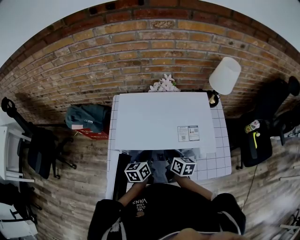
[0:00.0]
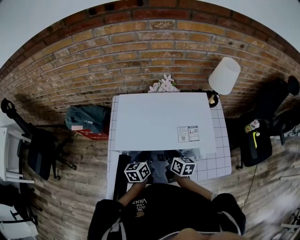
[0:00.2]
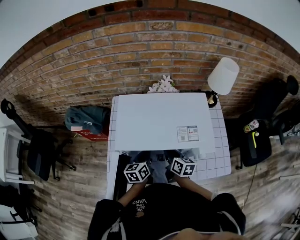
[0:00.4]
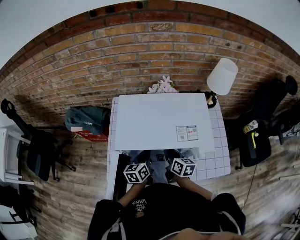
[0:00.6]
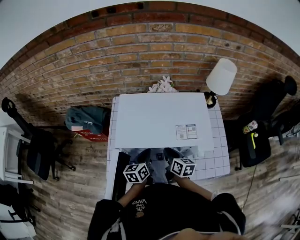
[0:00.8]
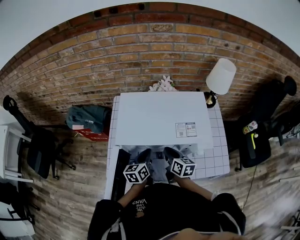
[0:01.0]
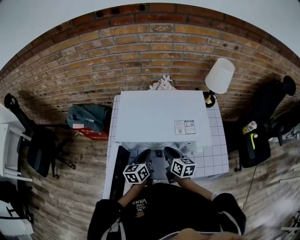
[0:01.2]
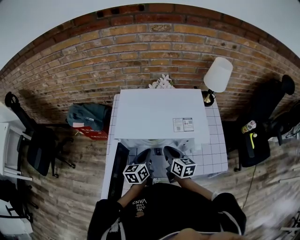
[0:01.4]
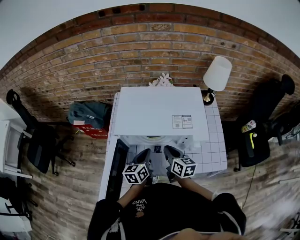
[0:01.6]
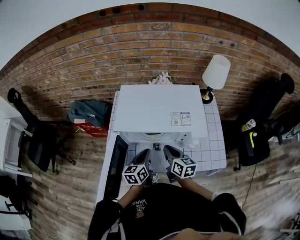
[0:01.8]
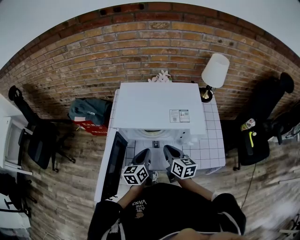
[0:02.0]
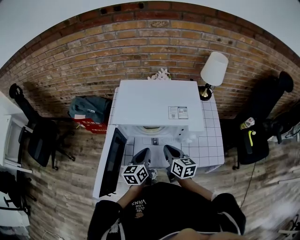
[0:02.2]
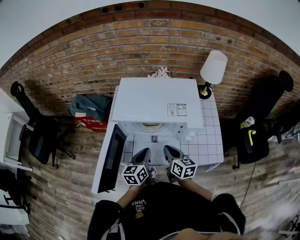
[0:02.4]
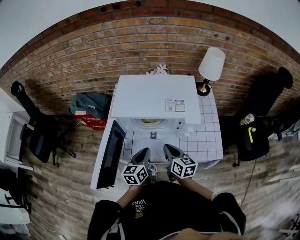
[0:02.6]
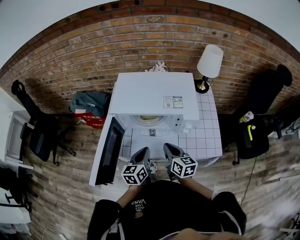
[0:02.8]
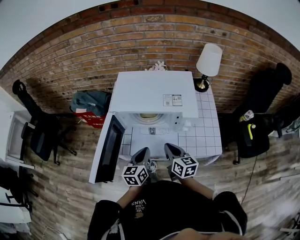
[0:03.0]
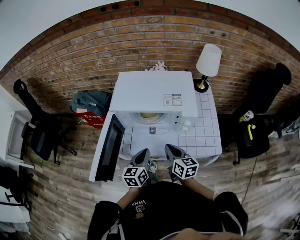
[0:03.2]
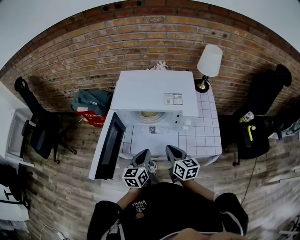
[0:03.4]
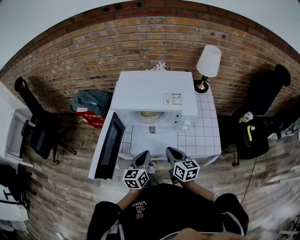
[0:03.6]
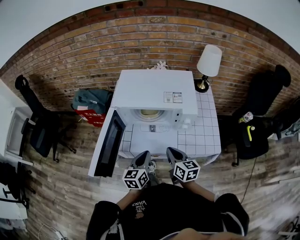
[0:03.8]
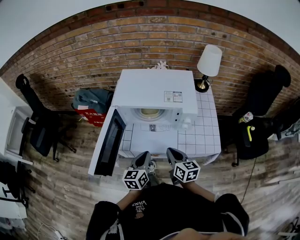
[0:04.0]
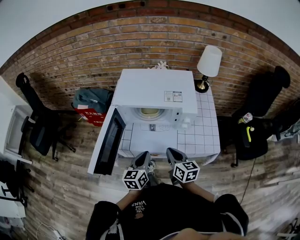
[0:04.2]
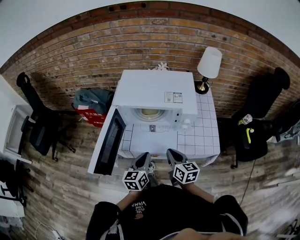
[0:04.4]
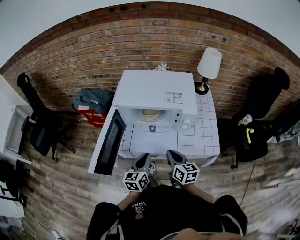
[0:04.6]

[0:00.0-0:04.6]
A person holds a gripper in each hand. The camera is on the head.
0:00.0 to 0:01.6: The grippers both shift backward by approximately 5 cm.
0:01.6 to 0:03.0: Both grippers move backward, some 10 cm.
0:03.0 to 0:04.6: The two grippers go approximately 5 cm backward.

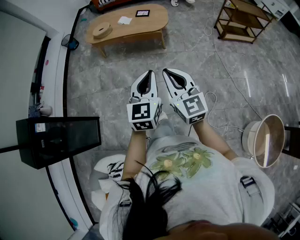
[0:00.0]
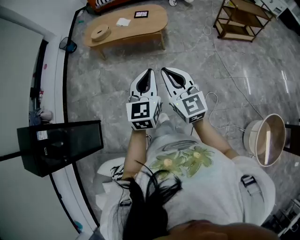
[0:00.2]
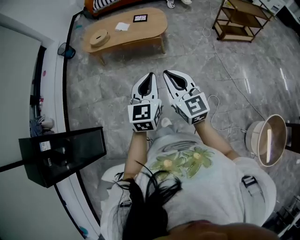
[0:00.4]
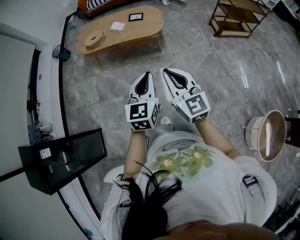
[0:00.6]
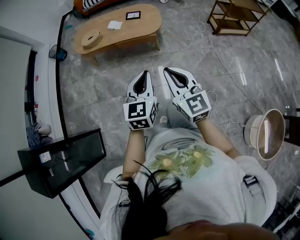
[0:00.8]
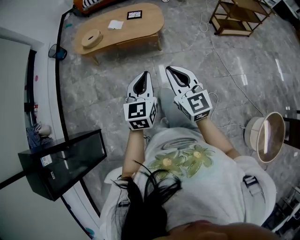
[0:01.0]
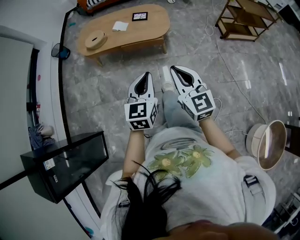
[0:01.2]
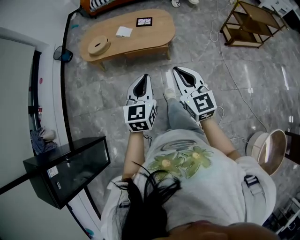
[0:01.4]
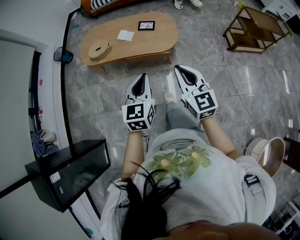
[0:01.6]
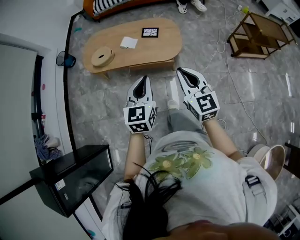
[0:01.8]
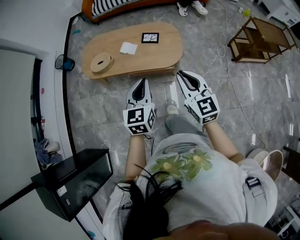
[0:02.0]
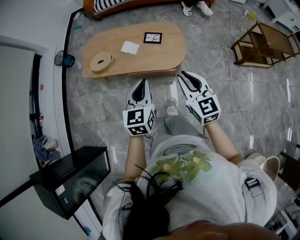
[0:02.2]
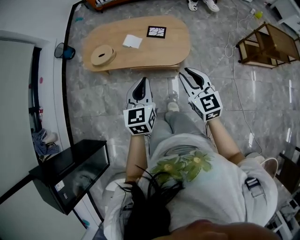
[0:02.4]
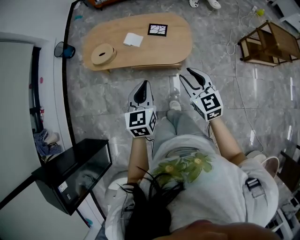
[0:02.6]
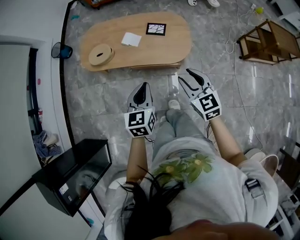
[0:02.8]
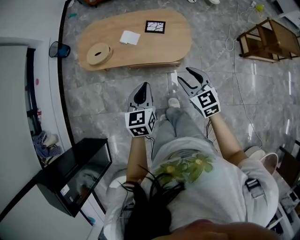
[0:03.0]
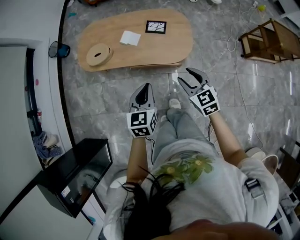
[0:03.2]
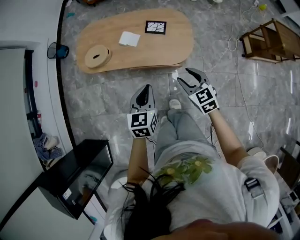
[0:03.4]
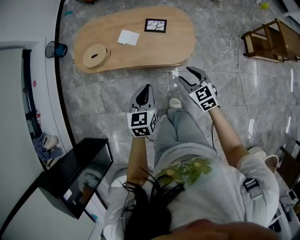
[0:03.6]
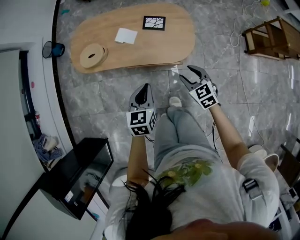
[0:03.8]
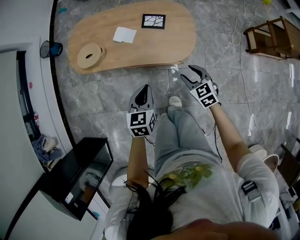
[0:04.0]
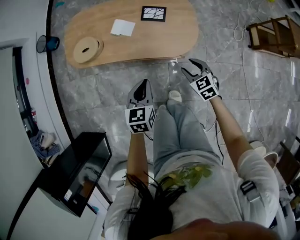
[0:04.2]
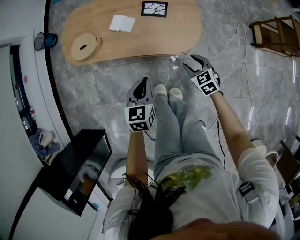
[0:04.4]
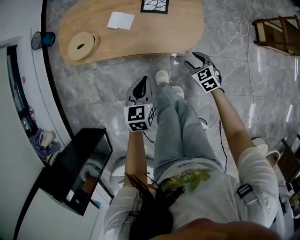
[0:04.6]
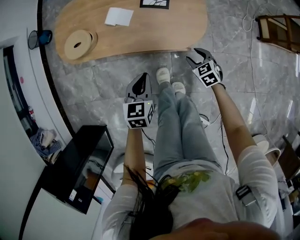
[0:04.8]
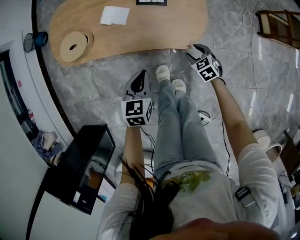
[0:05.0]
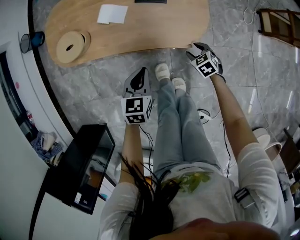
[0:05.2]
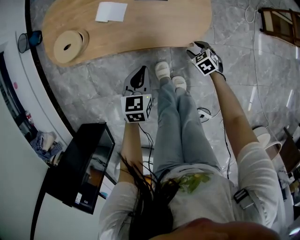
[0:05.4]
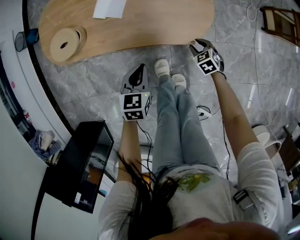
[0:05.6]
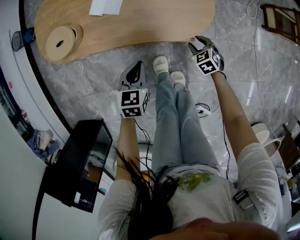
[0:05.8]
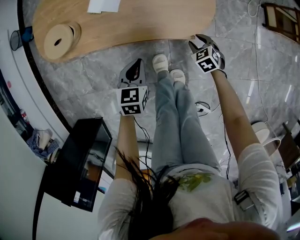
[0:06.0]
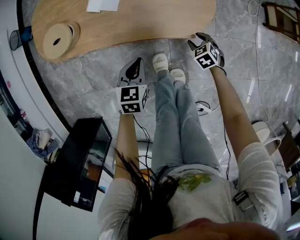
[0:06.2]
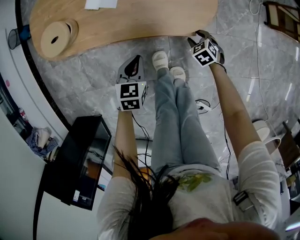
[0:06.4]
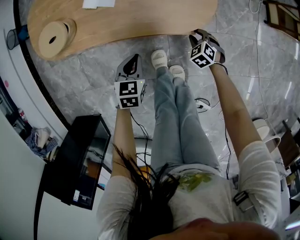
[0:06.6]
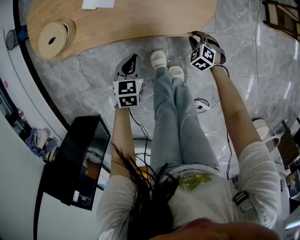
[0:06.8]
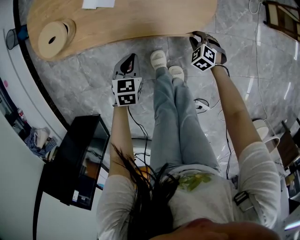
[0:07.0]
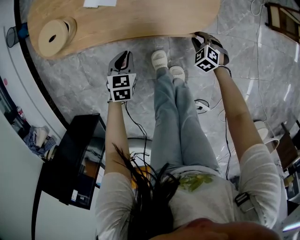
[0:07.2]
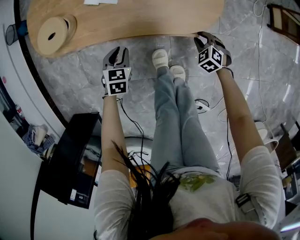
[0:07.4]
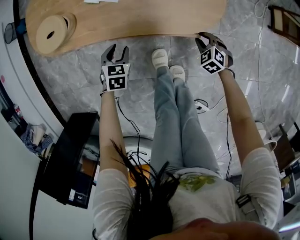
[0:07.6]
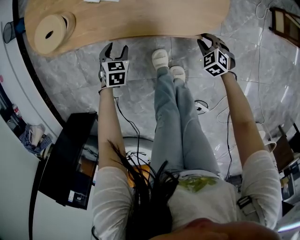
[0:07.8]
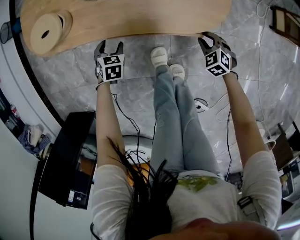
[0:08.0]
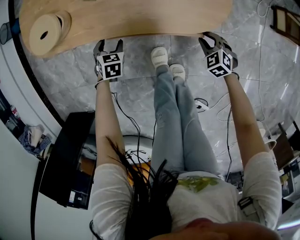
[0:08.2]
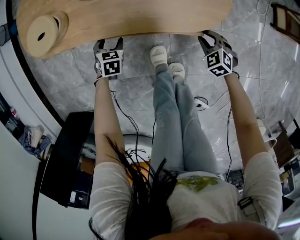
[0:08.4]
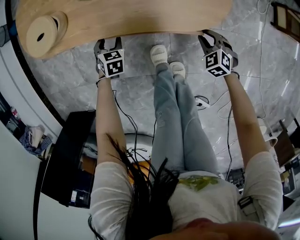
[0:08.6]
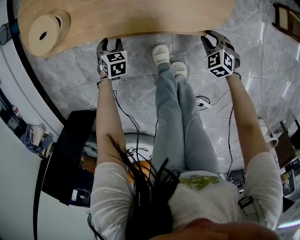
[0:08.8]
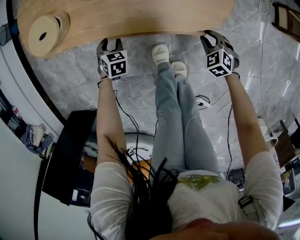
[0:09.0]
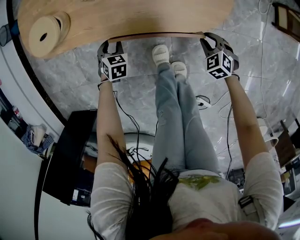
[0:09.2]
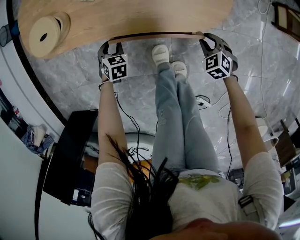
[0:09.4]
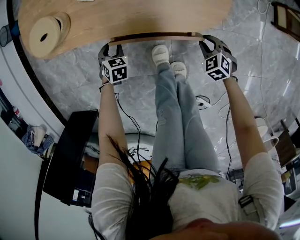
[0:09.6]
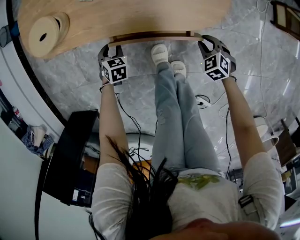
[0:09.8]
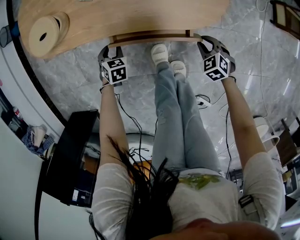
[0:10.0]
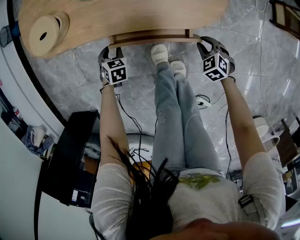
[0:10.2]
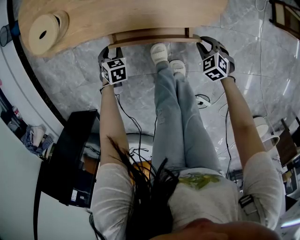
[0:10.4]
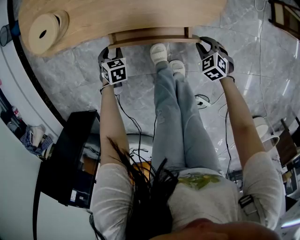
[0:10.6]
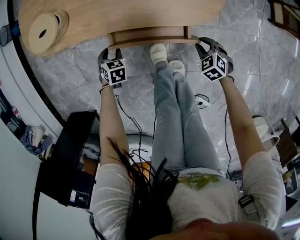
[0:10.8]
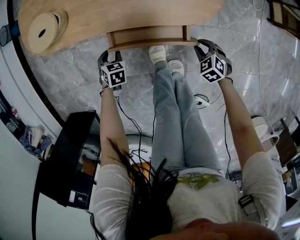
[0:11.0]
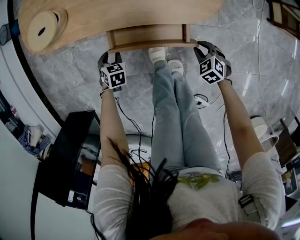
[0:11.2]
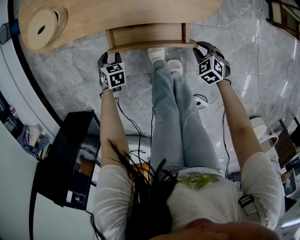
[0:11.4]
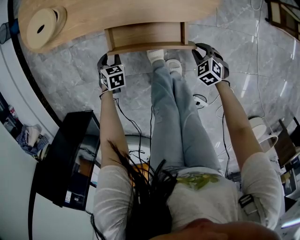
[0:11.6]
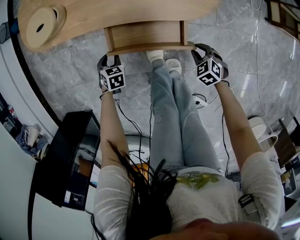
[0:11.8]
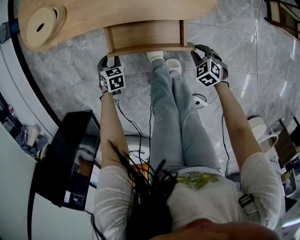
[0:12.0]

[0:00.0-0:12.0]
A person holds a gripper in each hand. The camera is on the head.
0:00.0 to 0:01.6: The grippers both shift forward by some 35 cm.
0:01.6 to 0:03.0: Both grippers move forward and downward, roughly 20 cm. The right gripper rotates roughly 20 degrees, and opens.
0:03.0 to 0:04.4: The right gripper heads downward, covering roughly 25 cm, and rotates some 20 degrees, while the left gripper travels downward by some 15 cm.
0:04.4 to 0:06.0: The grippers both shift downward by about 20 cm.
0:06.0 to 0:07.6: The left gripper goes approximately 15 cm downward and to the left, and opens.
0:07.6 to 0:09.0: The left gripper goes roughly 5 cm downward.
0:09.0 to 0:10.4: The left gripper moves about 5 cm.
0:10.4 to 0:12.0: The two grippers go some 5 cm backward.

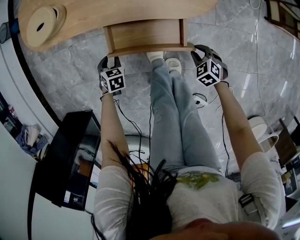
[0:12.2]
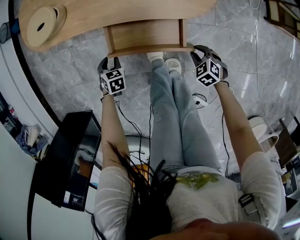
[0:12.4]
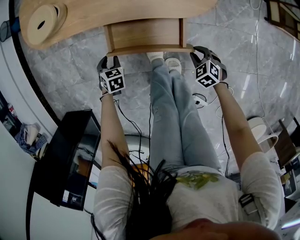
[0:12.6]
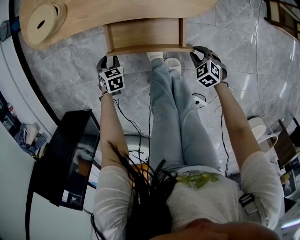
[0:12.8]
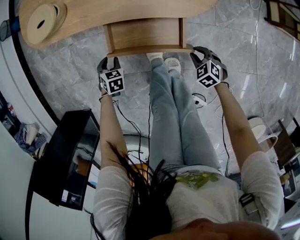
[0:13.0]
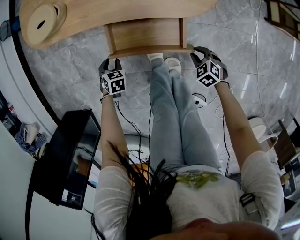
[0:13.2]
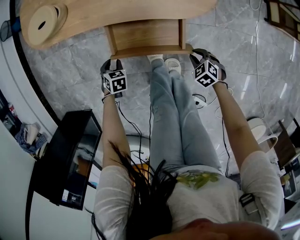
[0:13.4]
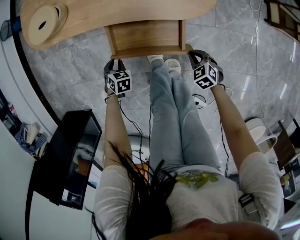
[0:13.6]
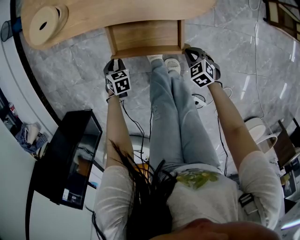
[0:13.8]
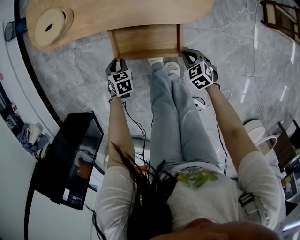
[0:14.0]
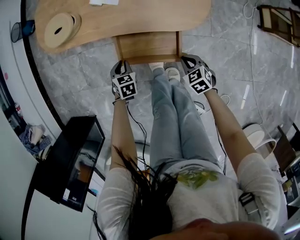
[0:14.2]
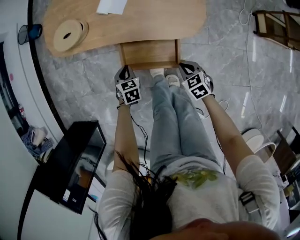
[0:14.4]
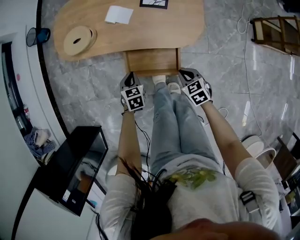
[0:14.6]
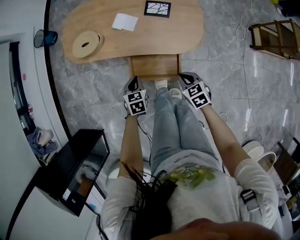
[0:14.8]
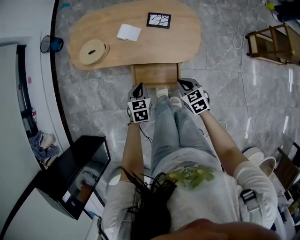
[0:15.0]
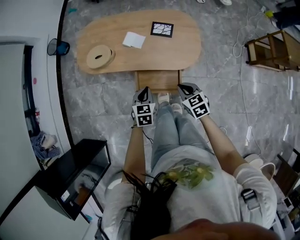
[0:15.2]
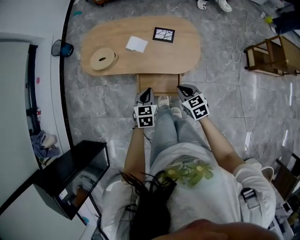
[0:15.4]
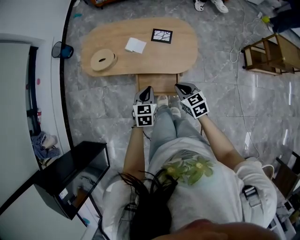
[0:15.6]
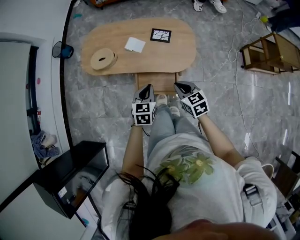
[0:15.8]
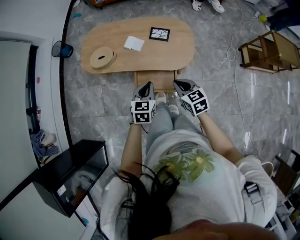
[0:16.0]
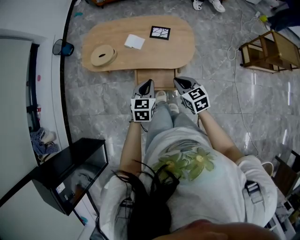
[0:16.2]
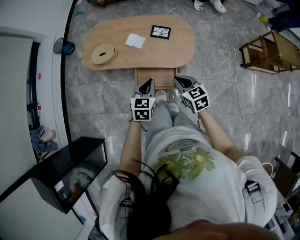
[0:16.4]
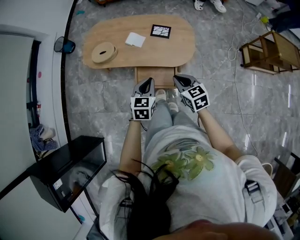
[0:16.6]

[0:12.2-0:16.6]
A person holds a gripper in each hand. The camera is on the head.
0:12.2 to 0:13.6: The right gripper closes up.
0:13.6 to 0:15.2: The left gripper is displaced upward and to the right by approximately 35 cm, and changes its angle by approximately 30 degrees. Meanwhile the right gripper heads upward, covering some 30 cm, and swivels some 30 degrees.
0:15.2 to 0:16.6: Both grippers travel together upward, roughly 10 cm.

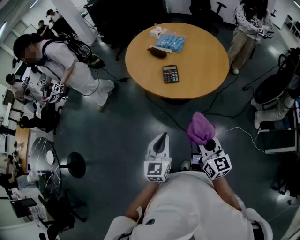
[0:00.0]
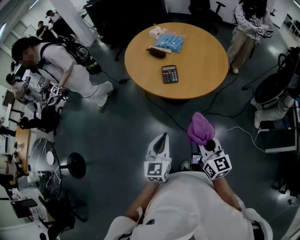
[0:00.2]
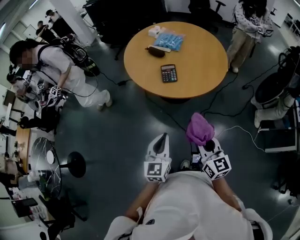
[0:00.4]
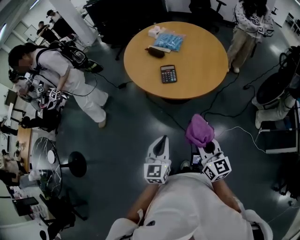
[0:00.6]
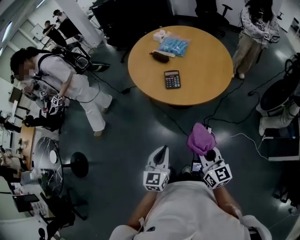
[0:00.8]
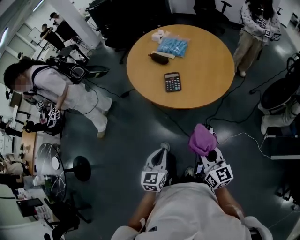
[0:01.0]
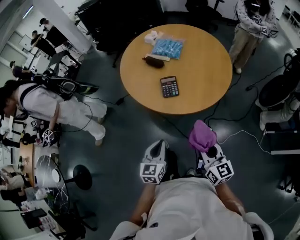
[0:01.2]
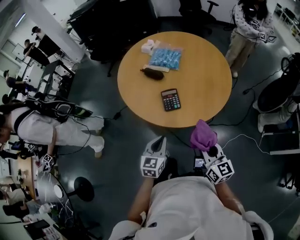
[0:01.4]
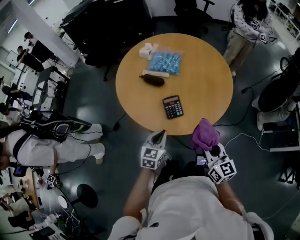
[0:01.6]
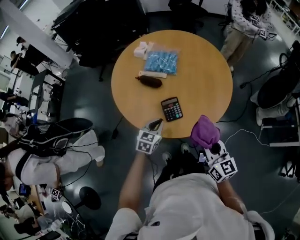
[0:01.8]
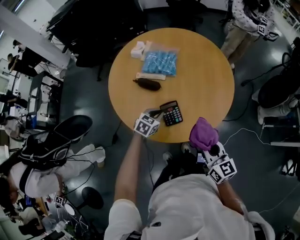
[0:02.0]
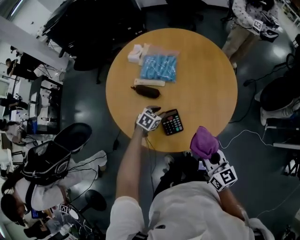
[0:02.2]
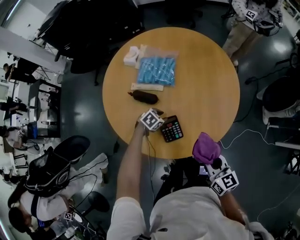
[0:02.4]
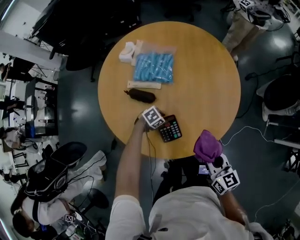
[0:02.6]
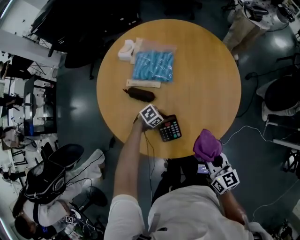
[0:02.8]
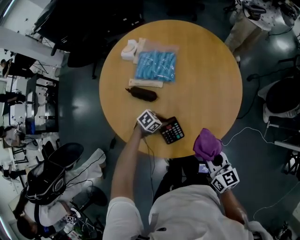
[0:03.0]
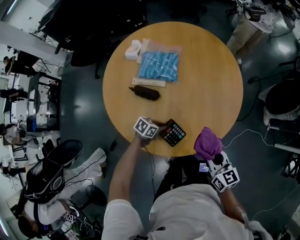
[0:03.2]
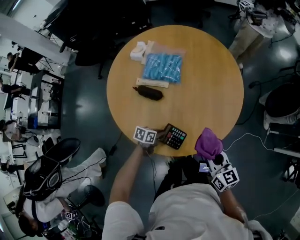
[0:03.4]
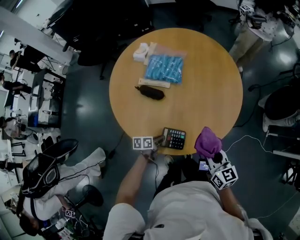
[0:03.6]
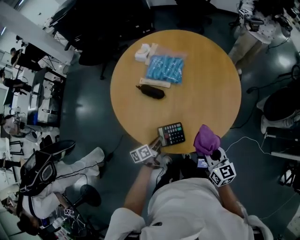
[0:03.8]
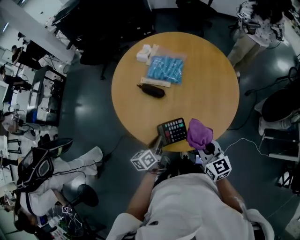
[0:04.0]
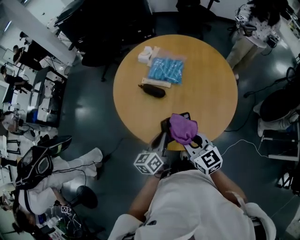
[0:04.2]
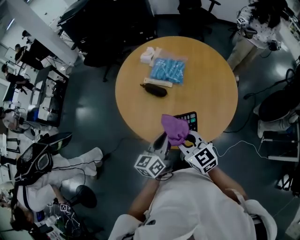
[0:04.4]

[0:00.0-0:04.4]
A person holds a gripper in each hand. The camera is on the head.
0:00.0 to 0:01.4: The two grippers go some 20 cm forward.
0:01.4 to 0:03.0: The right gripper moves about 20 cm; the left gripper shifts by approximately 40 cm, and changes its angle by roughly 70 degrees.
0:03.0 to 0:04.4: The right gripper shifts by roughly 20 cm, and changes its angle by approximately 30 degrees. Meanwhile the left gripper moves upward, some 30 cm, and tilts its fingers approximately 40 degrees upward.
